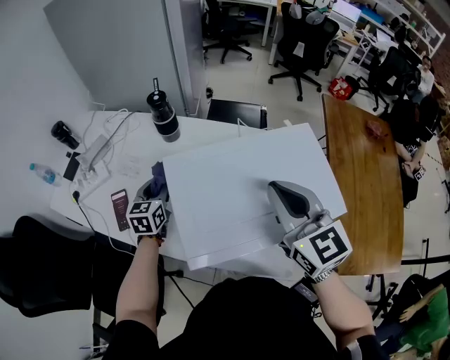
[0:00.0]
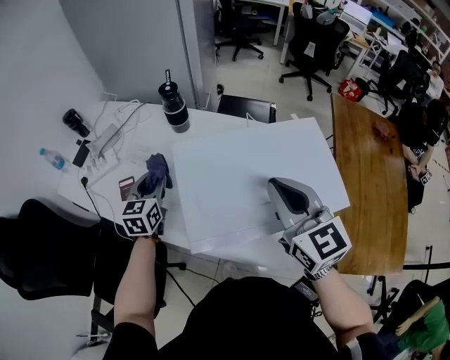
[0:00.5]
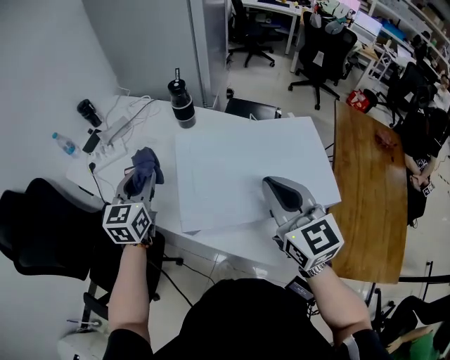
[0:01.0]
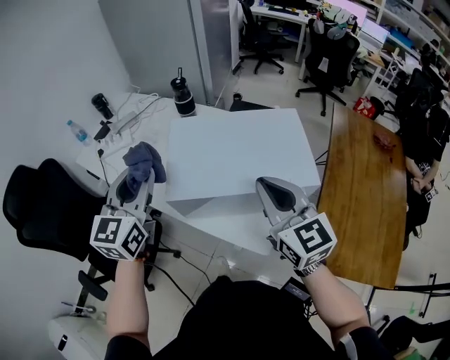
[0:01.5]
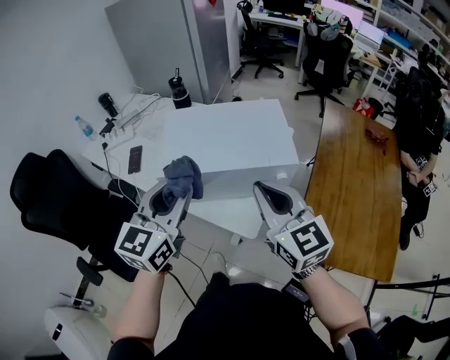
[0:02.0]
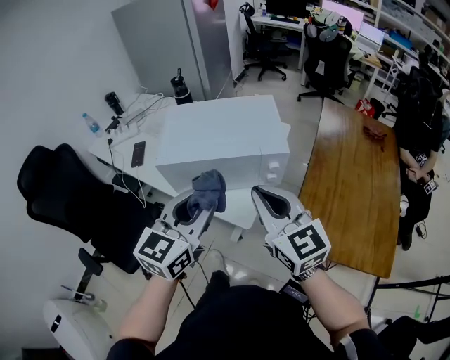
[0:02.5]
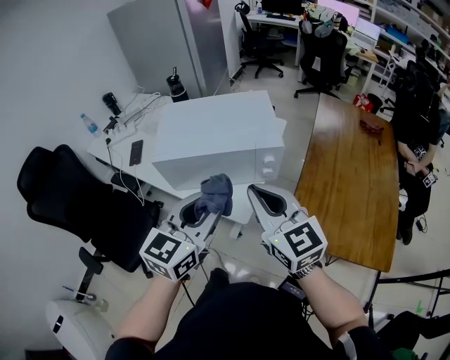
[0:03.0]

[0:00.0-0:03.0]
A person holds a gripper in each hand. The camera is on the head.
0:00.0 to 0:01.5: The left gripper is displaced upward and backward by about 35 cm, and swivels about 30 degrees. Meanwhile the right gripper heads backward, covering some 15 cm.
0:01.5 to 0:03.0: The left gripper heads to the right and backward, covering about 30 cm, and rotates roughly 20 degrees, while the right gripper is displaced backward and to the right by approximately 20 cm.

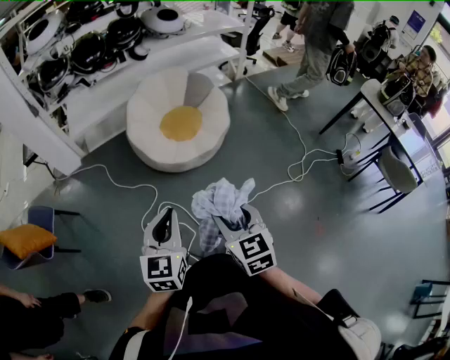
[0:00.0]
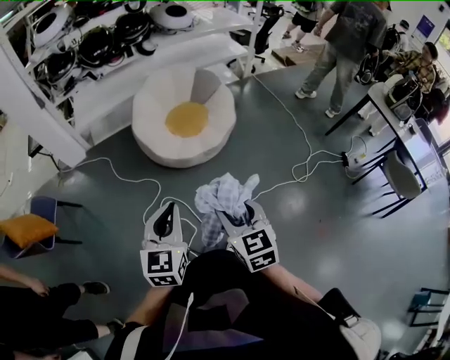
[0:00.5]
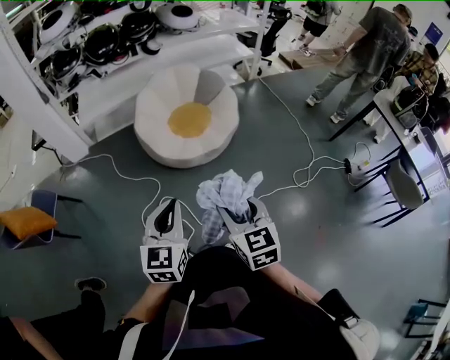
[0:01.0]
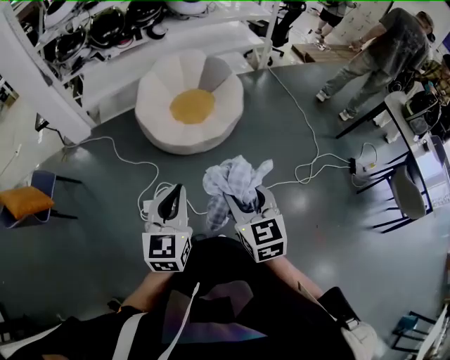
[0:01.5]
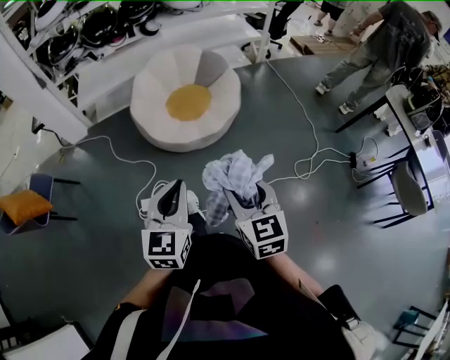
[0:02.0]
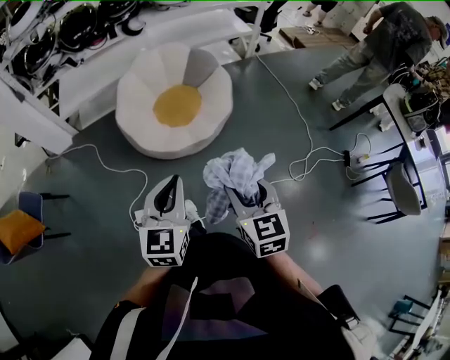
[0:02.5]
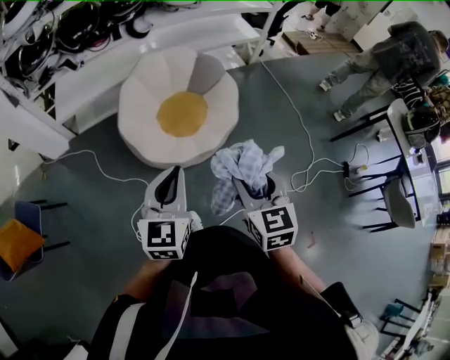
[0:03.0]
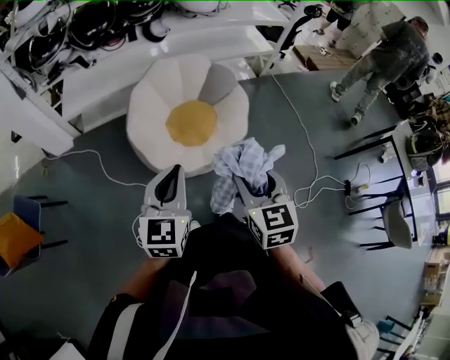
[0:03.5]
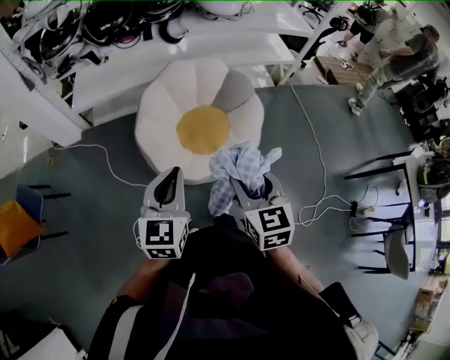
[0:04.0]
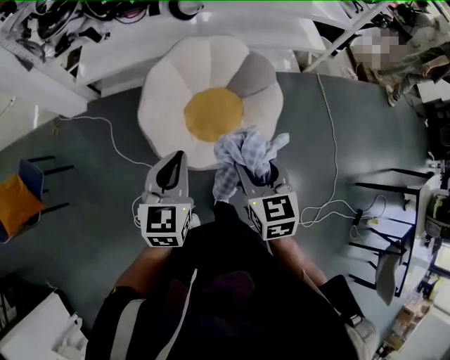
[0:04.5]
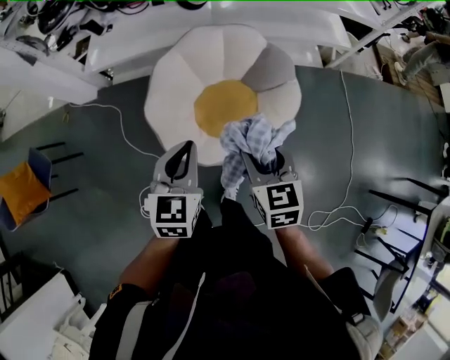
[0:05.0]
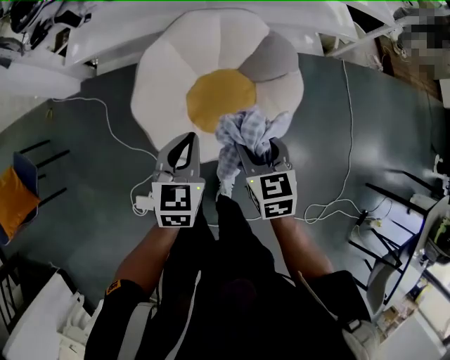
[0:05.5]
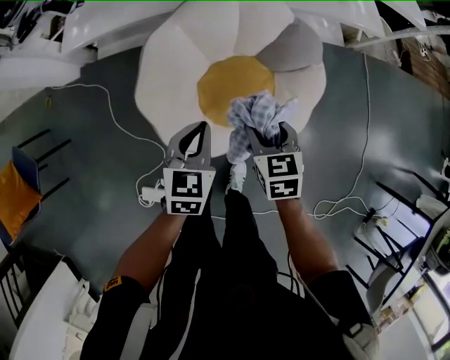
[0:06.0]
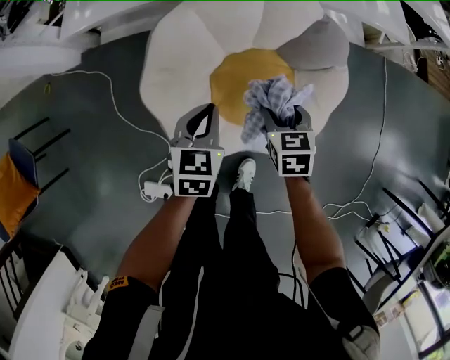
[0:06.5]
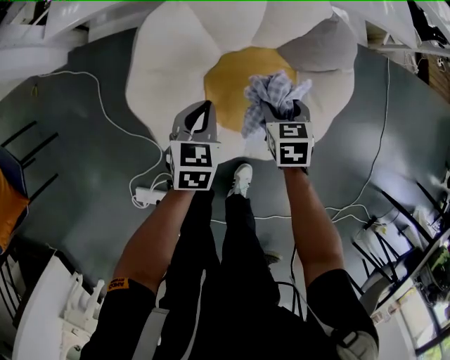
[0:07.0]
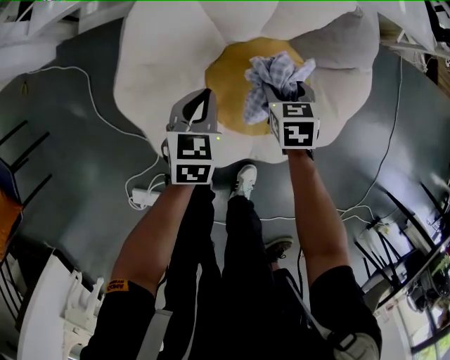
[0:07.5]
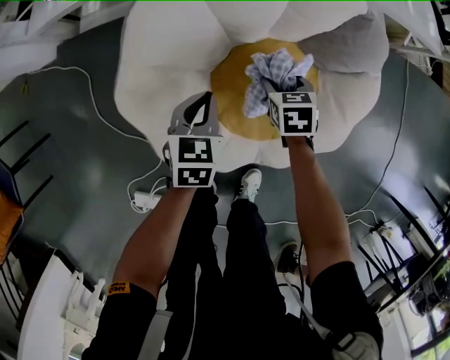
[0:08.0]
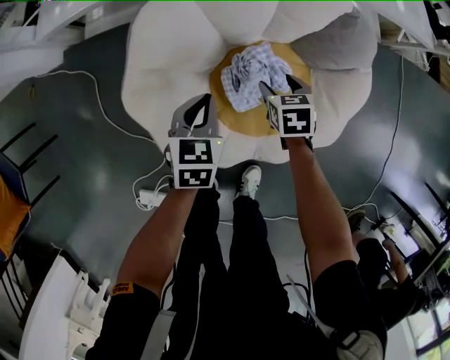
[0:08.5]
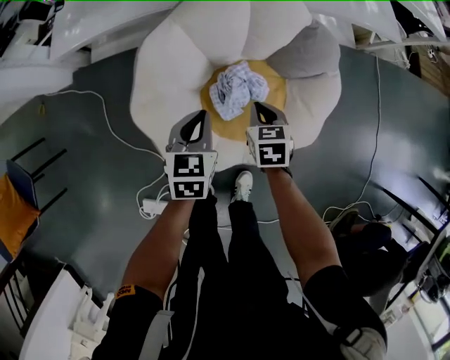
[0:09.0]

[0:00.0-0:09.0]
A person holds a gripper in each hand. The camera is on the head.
0:00.0 to 0:02.0: The left gripper is displaced to the right by approximately 15 cm. Meanwhile the right gripper is displaced to the right and forward by about 15 cm.
0:02.0 to 0:04.5: The pair of grippers is taken forward, some 50 cm.
0:04.5 to 0:07.0: The two grippers go some 50 cm downward and forward. The right gripper turns by roughly 20 degrees. The left gripper changes its angle by roughly 20 degrees.
0:07.0 to 0:09.0: The left gripper travels downward and back again, roughly 10 cm each way; the right gripper moves approximately 15 cm downward and comes back, and closes its fingers.

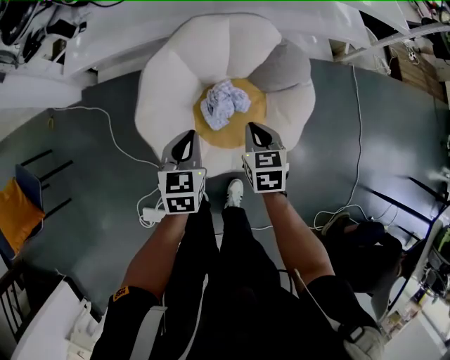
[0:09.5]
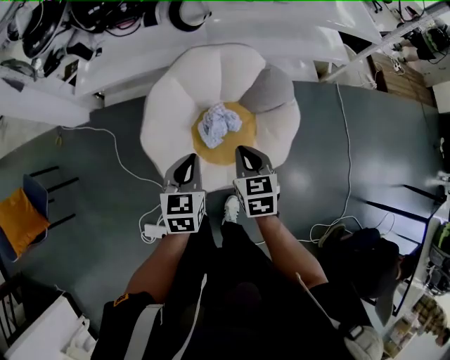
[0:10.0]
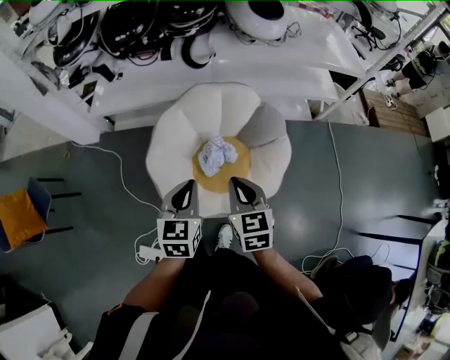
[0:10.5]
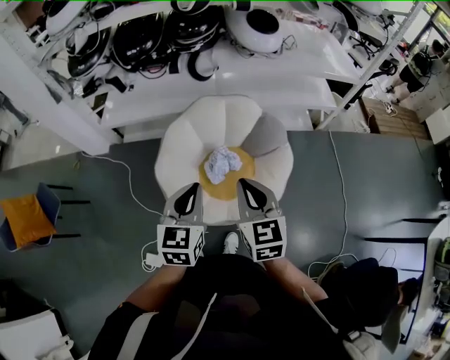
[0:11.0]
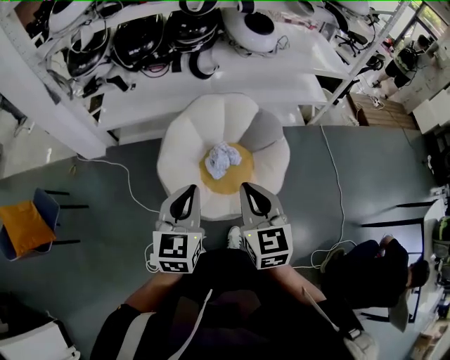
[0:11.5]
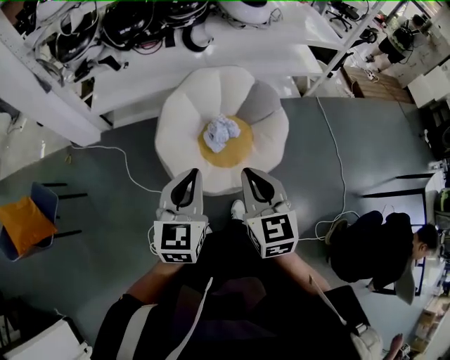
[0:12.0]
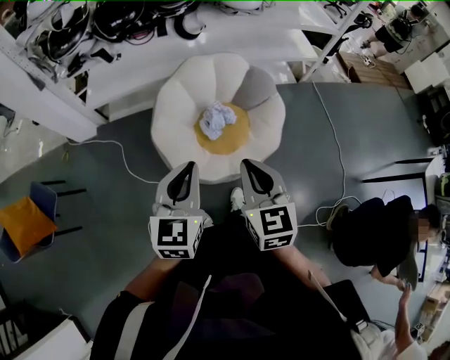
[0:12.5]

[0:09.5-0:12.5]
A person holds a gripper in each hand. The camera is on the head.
0:09.5 to 0:11.0: The grippers both shift upward and backward by approximately 30 cm. The right gripper rotates roughly 30 degrees.
0:11.0 to 0:12.5: The two grippers go some 15 cm backward and to the left.

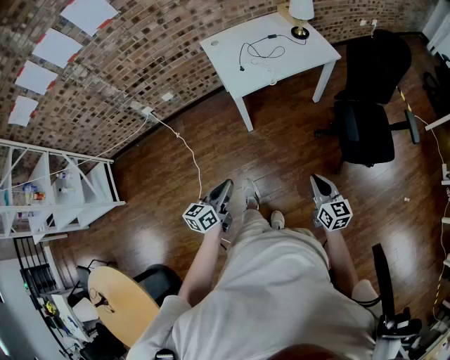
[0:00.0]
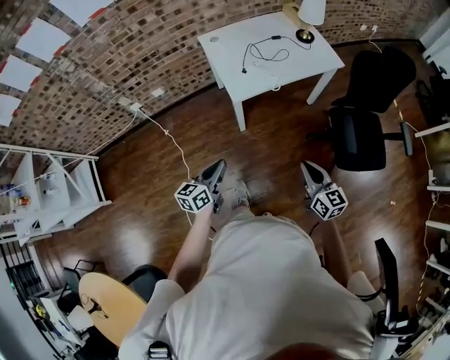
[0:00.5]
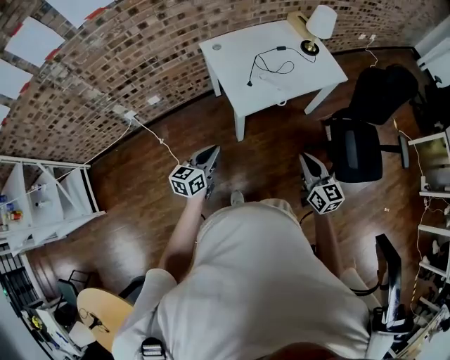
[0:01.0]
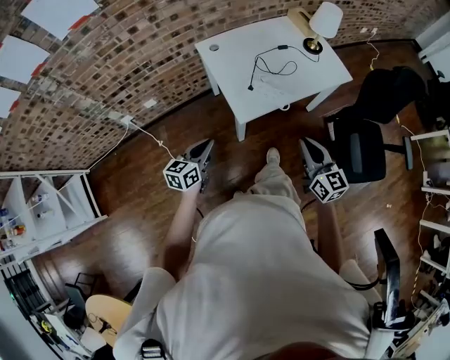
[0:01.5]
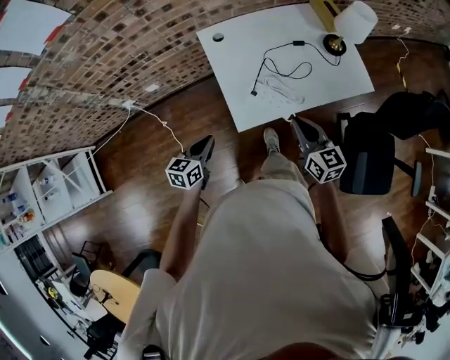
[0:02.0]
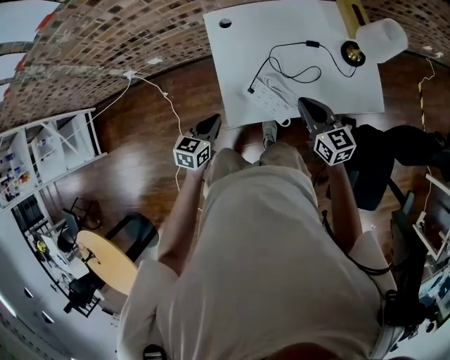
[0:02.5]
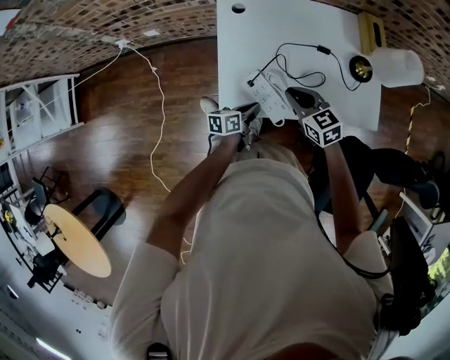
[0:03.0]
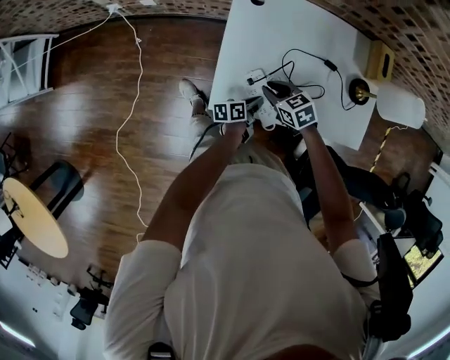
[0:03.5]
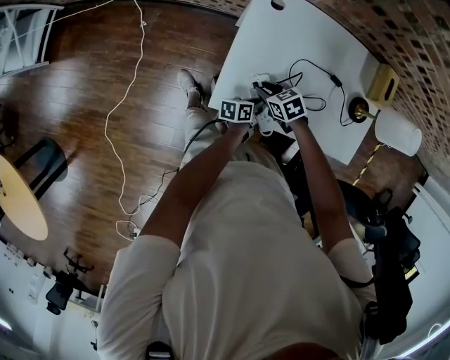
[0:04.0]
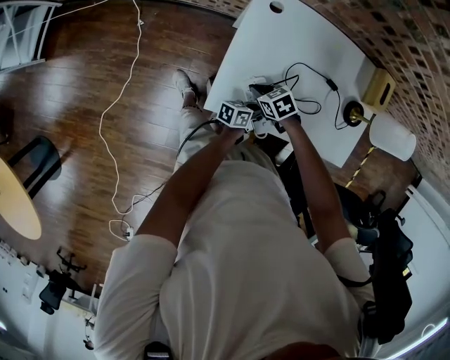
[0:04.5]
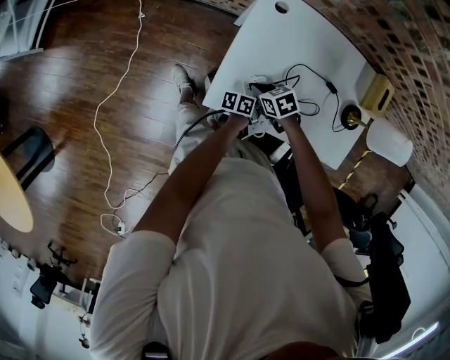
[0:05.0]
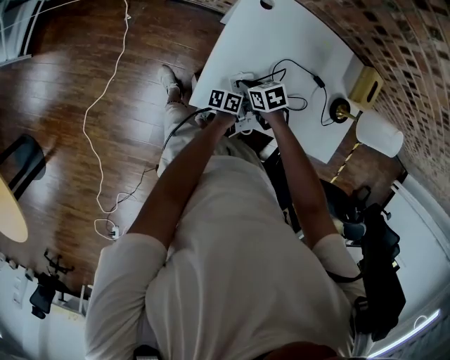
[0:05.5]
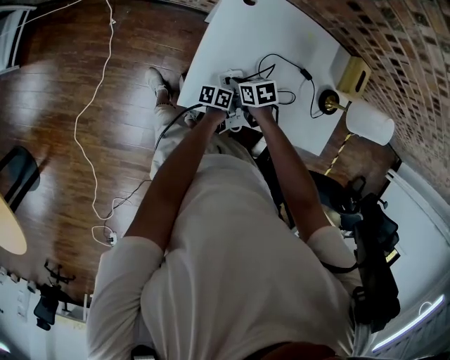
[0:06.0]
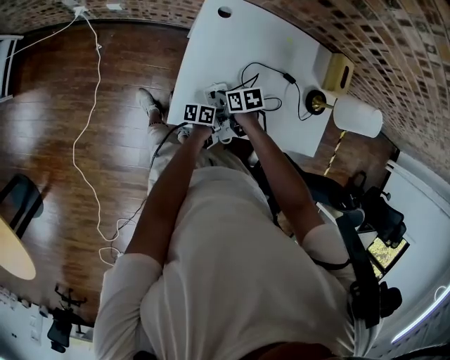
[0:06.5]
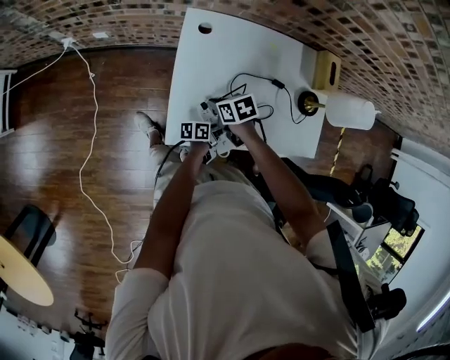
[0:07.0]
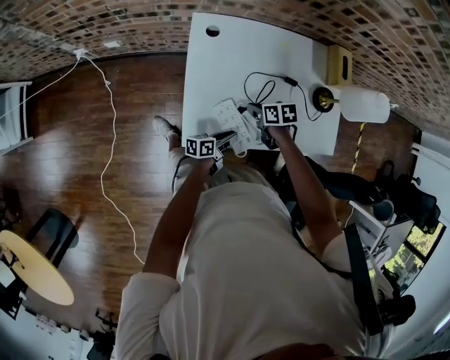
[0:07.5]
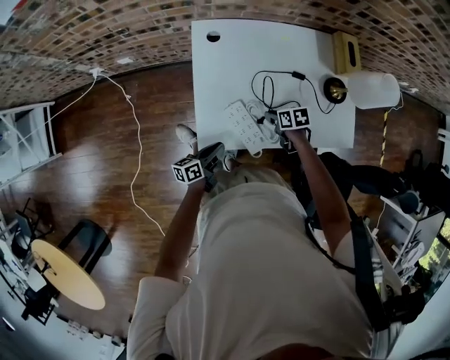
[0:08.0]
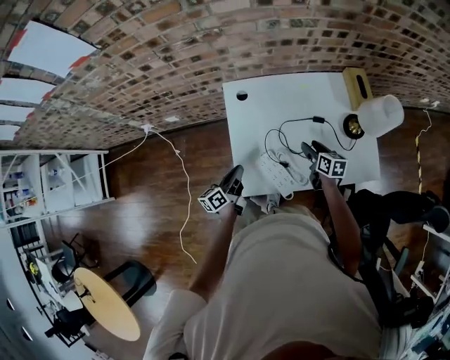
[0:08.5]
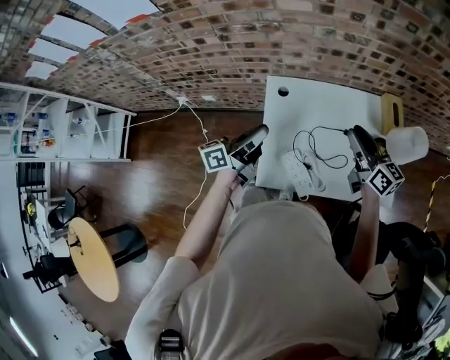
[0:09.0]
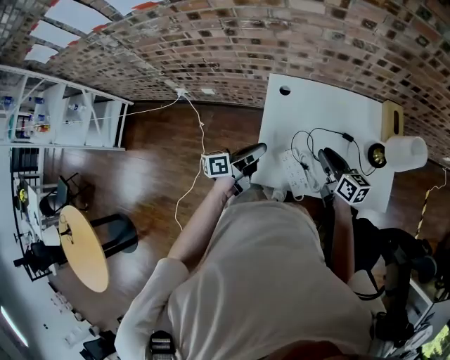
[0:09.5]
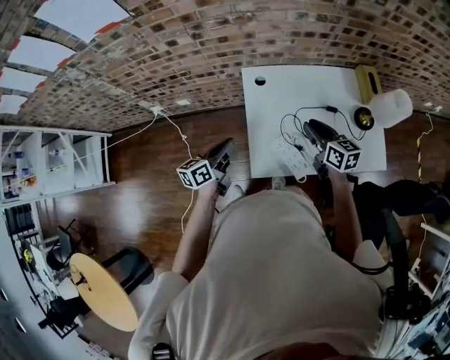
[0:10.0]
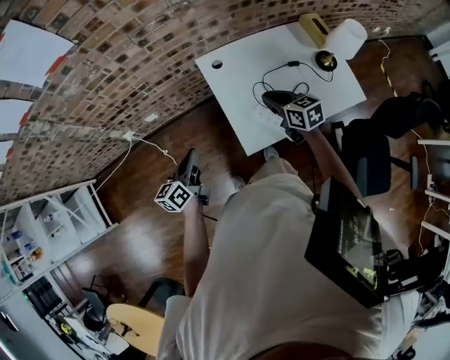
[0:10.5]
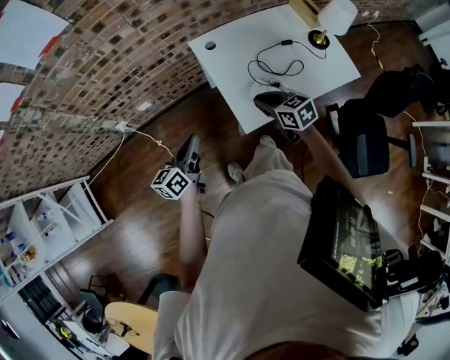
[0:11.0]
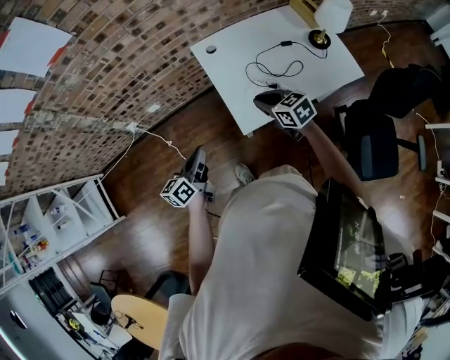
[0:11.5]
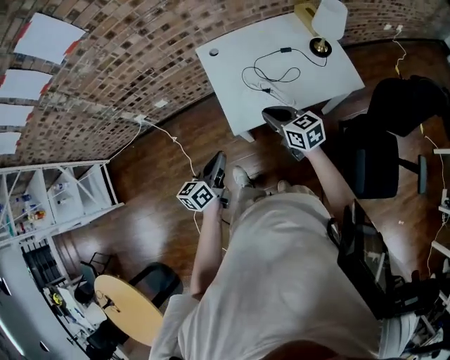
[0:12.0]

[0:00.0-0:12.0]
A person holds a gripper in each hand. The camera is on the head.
0:00.0 to 0:02.0: Both grippers are carried forward, approximately 50 cm.
0:02.0 to 0:04.0: The left gripper shifts by approximately 35 cm, and rotates around the line of its fingers by about 50 degrees, counterclockwise from behind. Meanwhile the right gripper is displaced downward by some 25 cm, points its fingers roughly 40 degrees further downward, and opens its fingers.
0:04.0 to 0:06.0: The right gripper closes its fingers.
0:06.0 to 0:08.0: The right gripper moves approximately 15 cm, and turns by roughly 30 degrees; the left gripper shifts by about 15 cm.
0:08.0 to 0:10.0: The left gripper moves upward, to the left and forward, roughly 30 cm, while the right gripper heads upward, covering approximately 30 cm, tilts its fingers some 30 degrees upward, and opens, then closes again.
0:10.0 to 0:12.0: Both grippers move backward, about 25 cm.
